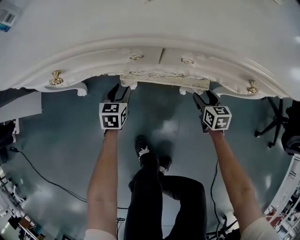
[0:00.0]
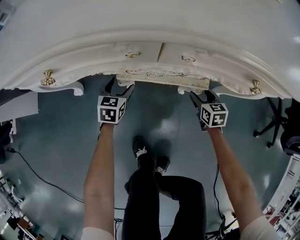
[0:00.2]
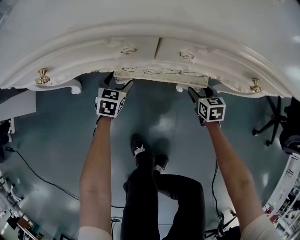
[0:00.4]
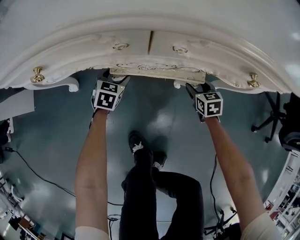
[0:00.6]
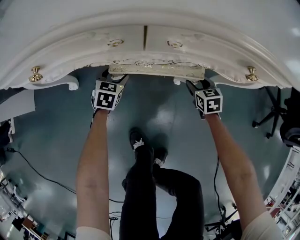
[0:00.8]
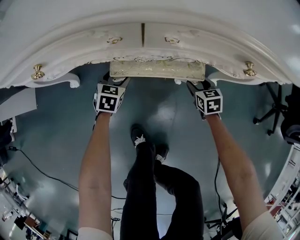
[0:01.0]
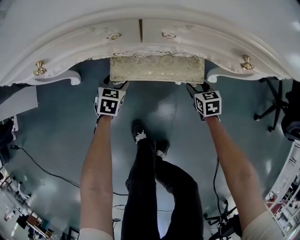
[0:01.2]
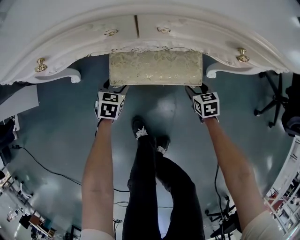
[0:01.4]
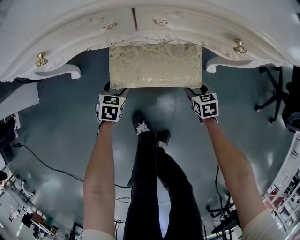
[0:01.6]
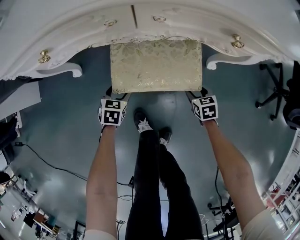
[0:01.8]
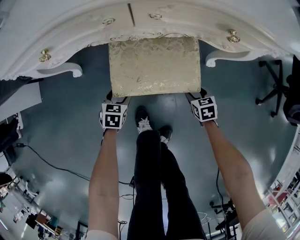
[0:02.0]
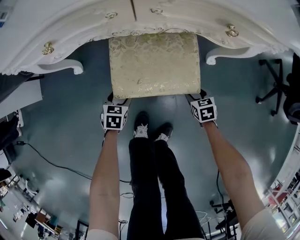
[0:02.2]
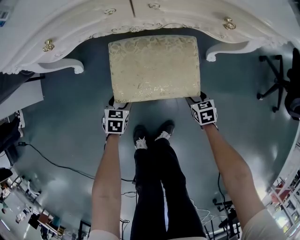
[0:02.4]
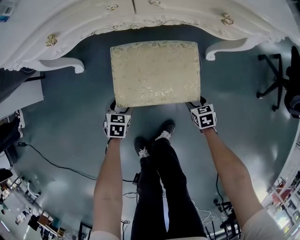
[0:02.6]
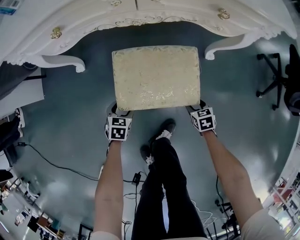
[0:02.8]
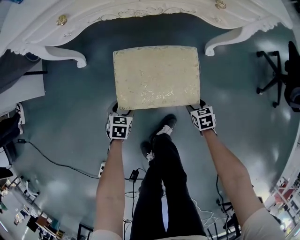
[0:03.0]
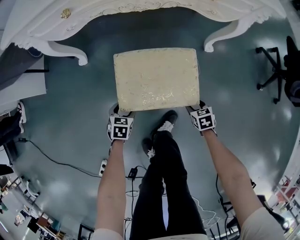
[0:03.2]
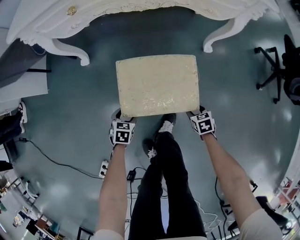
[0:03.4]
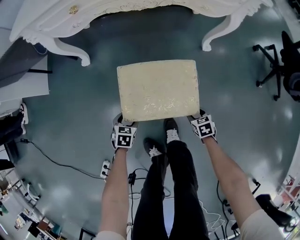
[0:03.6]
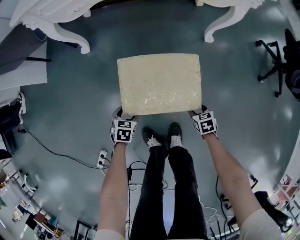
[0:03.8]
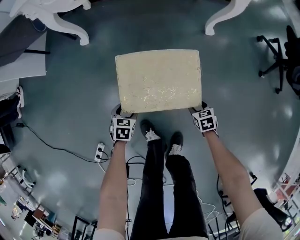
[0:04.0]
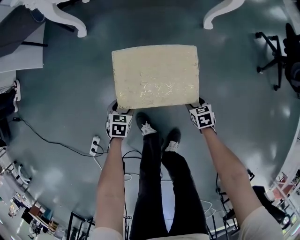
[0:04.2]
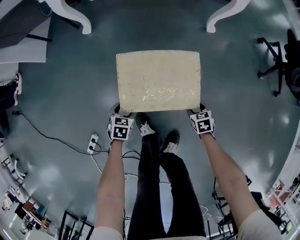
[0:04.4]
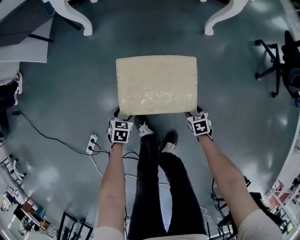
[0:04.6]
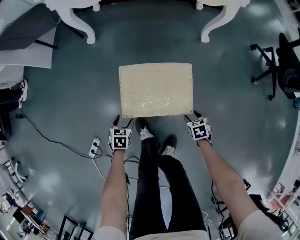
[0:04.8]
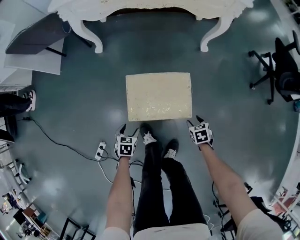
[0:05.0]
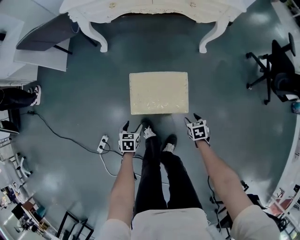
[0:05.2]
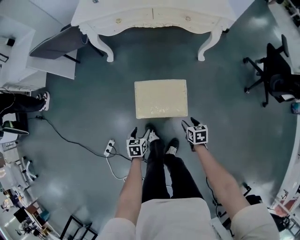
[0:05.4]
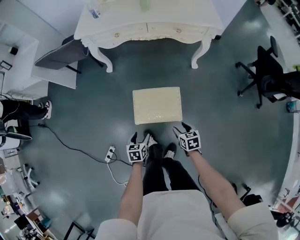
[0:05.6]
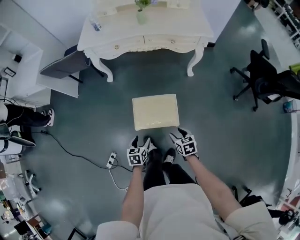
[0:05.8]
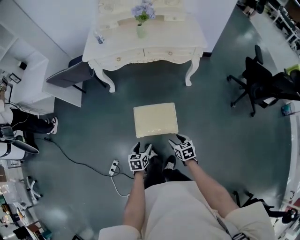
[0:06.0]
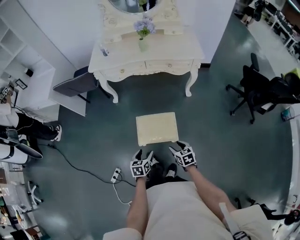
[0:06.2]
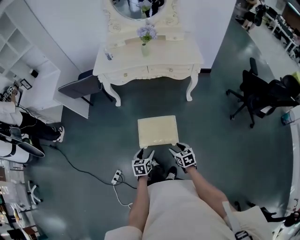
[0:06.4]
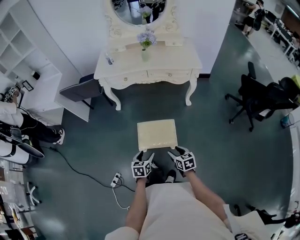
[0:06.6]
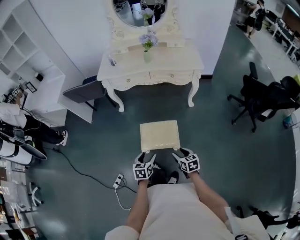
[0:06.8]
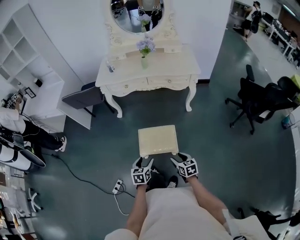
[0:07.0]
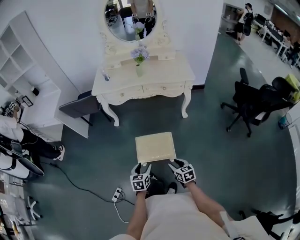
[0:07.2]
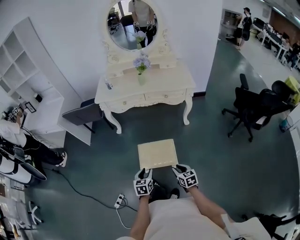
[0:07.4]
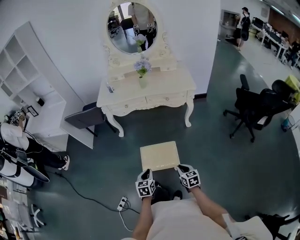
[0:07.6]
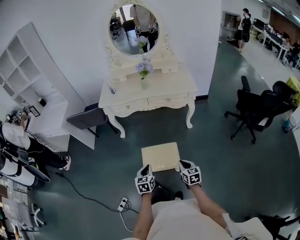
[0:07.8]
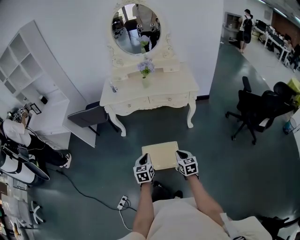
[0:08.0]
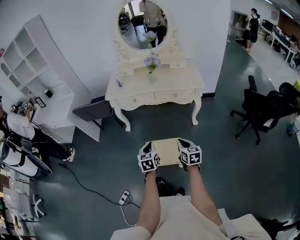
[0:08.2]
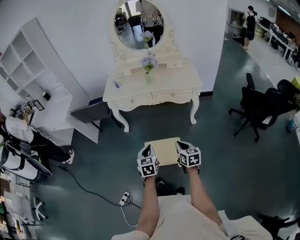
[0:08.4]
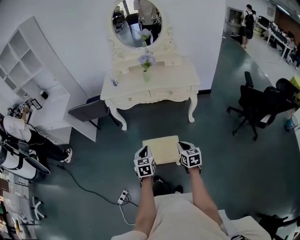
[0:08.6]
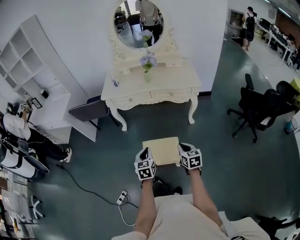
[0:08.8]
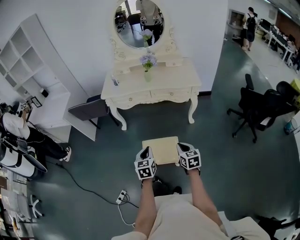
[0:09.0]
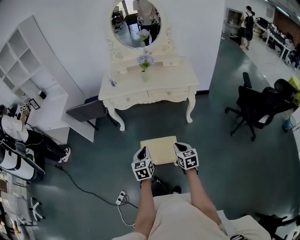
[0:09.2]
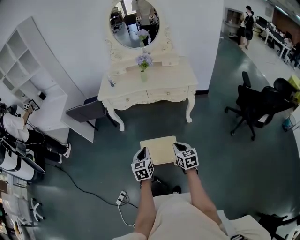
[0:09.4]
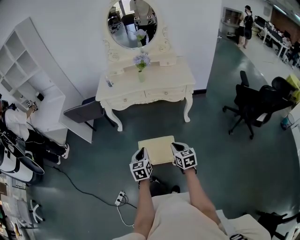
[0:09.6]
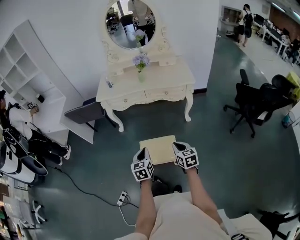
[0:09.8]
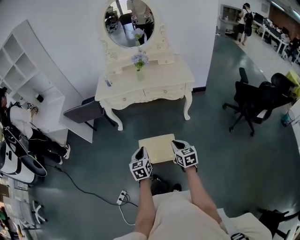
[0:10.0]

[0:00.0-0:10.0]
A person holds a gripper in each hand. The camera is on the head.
0.0 to 1.4 s: The two grippers go some 5 cm backward. The left gripper opens.
1.4 to 2.8 s: The two grippers go some 20 cm backward.
2.8 to 4.2 s: Both grippers travel together backward, about 25 cm.
4.2 to 5.8 s: Both grippers travel together upward, about 35 cm. The left gripper swivels some 20 degrees.
5.8 to 7.2 s: The left gripper heads upward, covering approximately 15 cm; the right gripper shifts roughly 15 cm upward and backward.
7.2 to 8.6 s: Both grippers travel together upward and forward, roughly 15 cm. The right gripper closes its fingers. Meanwhile the left gripper closes.
8.6 to 10.0 s: The grippers move only a little.

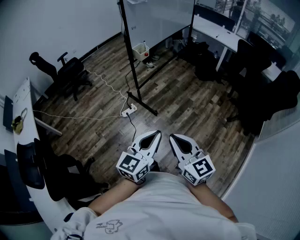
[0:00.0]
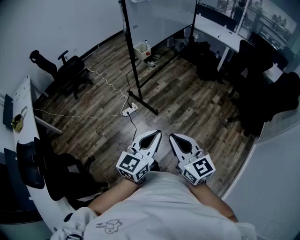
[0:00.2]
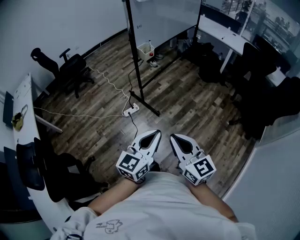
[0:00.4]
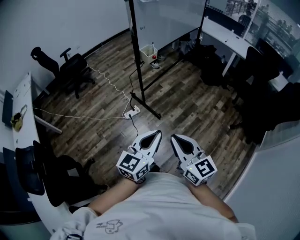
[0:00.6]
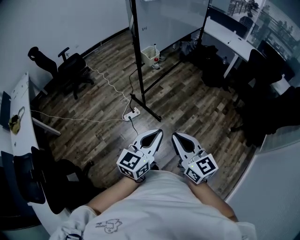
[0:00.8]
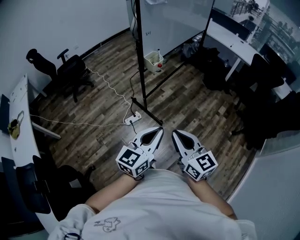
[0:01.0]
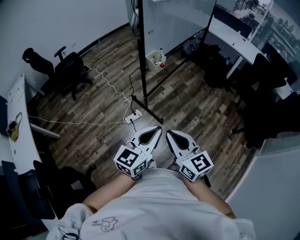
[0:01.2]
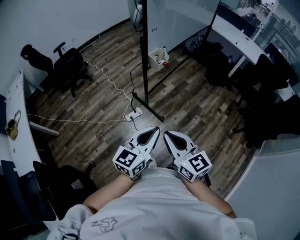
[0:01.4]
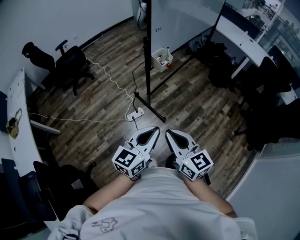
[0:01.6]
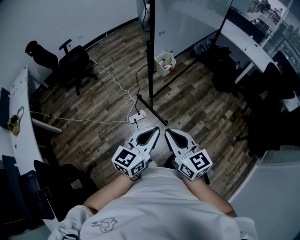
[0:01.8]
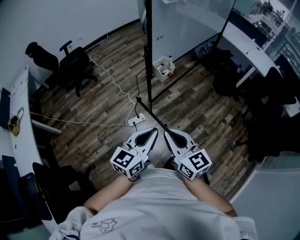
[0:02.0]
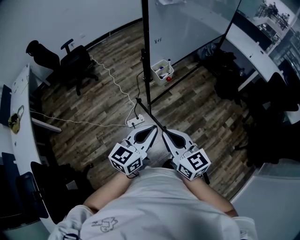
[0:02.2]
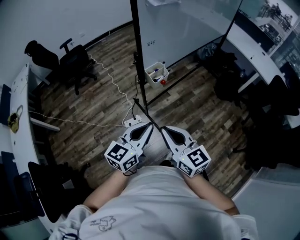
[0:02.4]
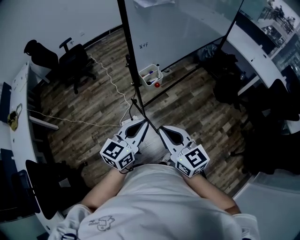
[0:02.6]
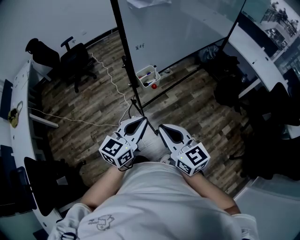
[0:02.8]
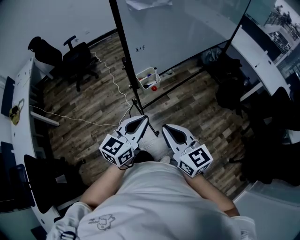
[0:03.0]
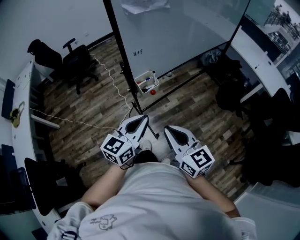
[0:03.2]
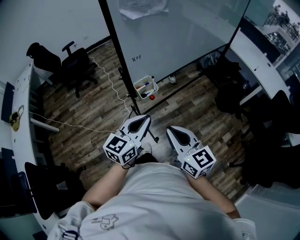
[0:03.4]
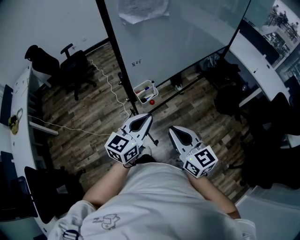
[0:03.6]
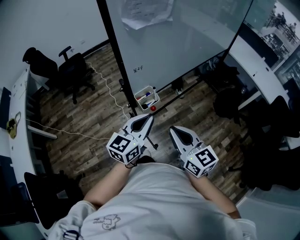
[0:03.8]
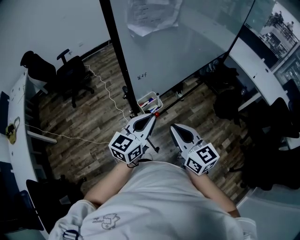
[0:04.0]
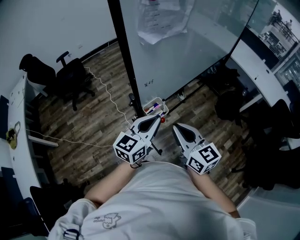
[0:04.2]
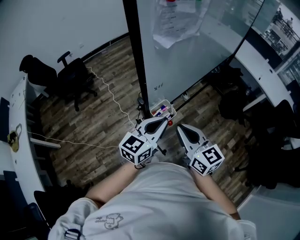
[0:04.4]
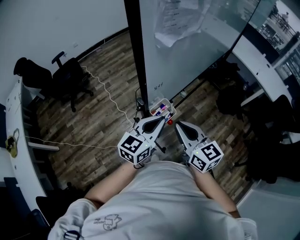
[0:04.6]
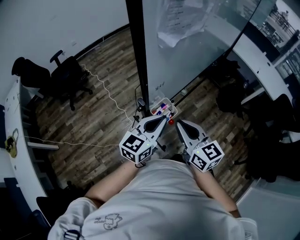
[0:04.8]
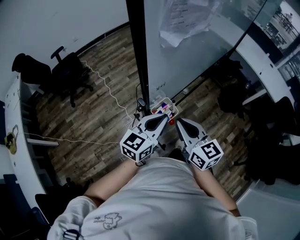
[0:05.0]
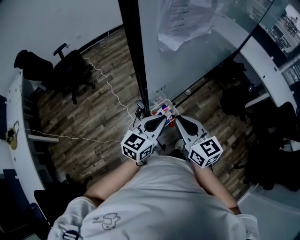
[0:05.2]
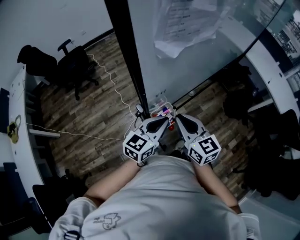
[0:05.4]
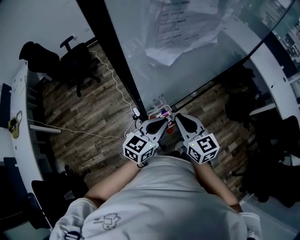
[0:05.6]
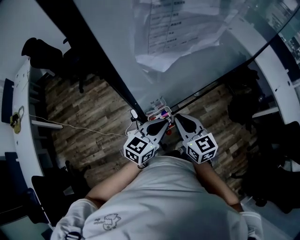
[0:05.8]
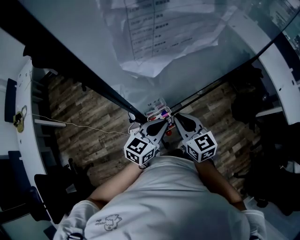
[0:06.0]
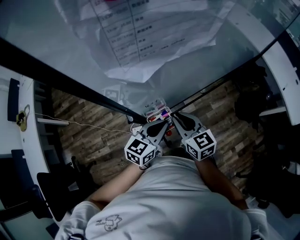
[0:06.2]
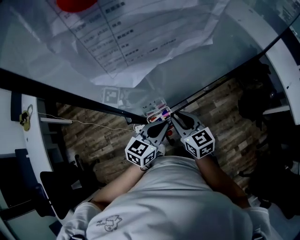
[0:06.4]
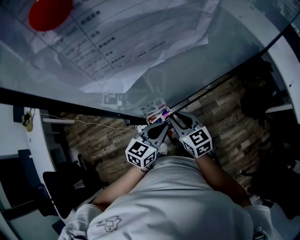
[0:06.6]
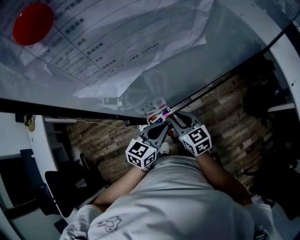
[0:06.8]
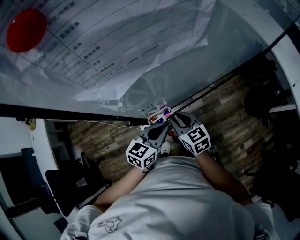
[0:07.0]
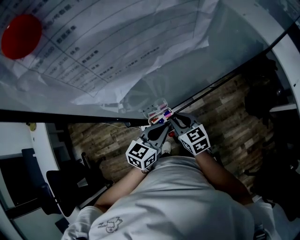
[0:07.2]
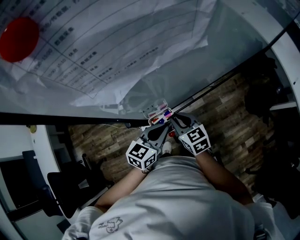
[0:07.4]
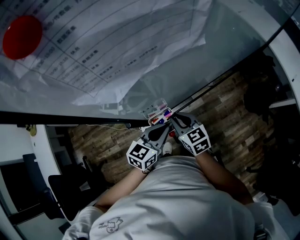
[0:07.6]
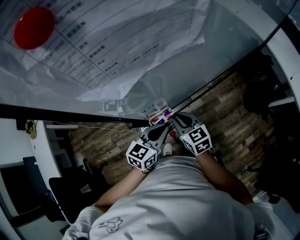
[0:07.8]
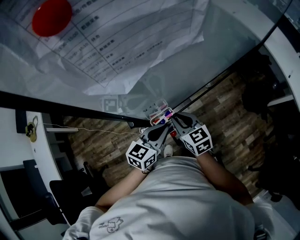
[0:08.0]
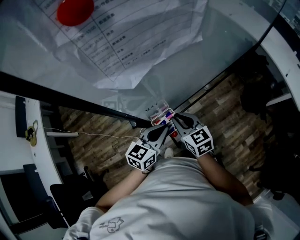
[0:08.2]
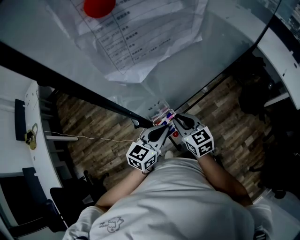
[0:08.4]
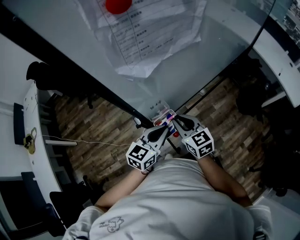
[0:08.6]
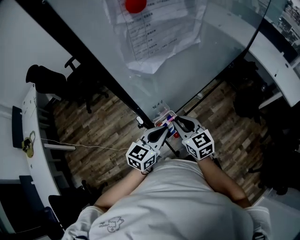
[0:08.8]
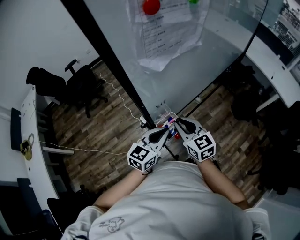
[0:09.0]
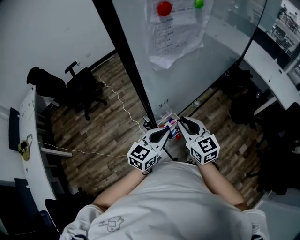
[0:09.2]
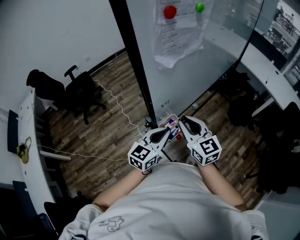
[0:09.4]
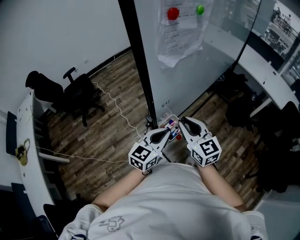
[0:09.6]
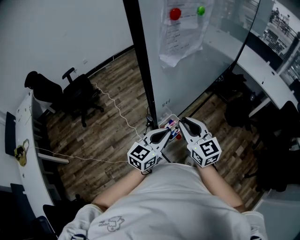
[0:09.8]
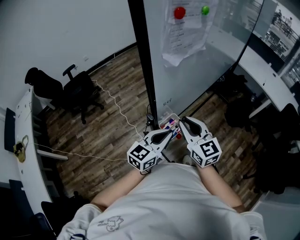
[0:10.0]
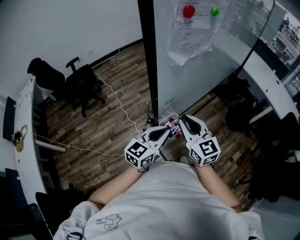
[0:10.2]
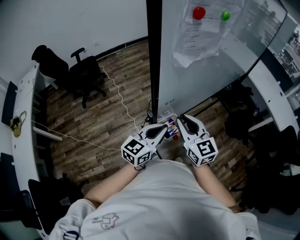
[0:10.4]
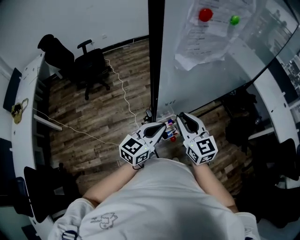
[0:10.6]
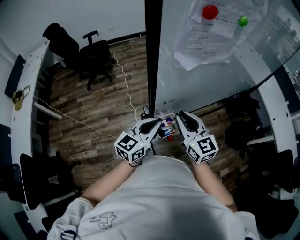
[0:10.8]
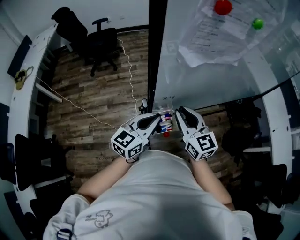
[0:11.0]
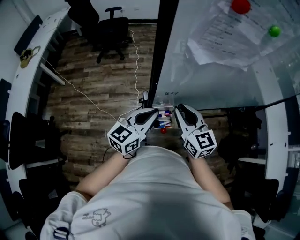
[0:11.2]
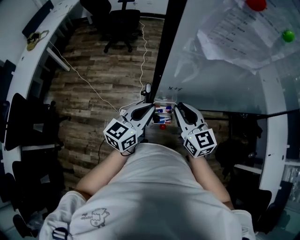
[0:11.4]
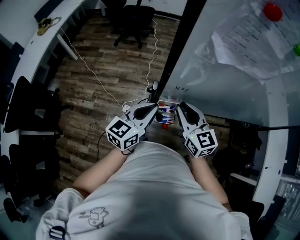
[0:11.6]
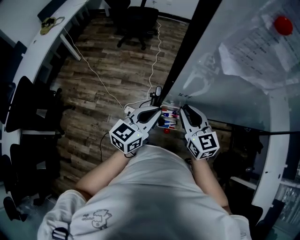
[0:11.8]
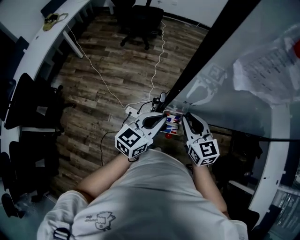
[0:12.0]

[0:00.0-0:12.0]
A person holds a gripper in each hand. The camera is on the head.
0.0 to 1.6 s: The two grippers go roughly 30 cm forward and to the left.
1.6 to 3.0 s: Both grippers travel together forward and to the right, some 25 cm.
3.0 to 4.4 s: Both grippers move forward, approximately 20 cm.
4.4 to 6.0 s: The left gripper is displaced downward and forward by some 15 cm; the right gripper heads forward and downward, covering approximately 15 cm.
6.0 to 7.6 s: The right gripper moves downward, approximately 10 cm.
7.6 to 9.0 s: The grippers both shift upward by approximately 10 cm.
9.0 to 10.4 s: The right gripper is displaced upward by about 10 cm.
10.4 to 12.0 s: The right gripper travels downward by about 10 cm, and changes its angle by roughly 40 degrees, while the left gripper changes place by about 5 cm, and turns by about 40 degrees.

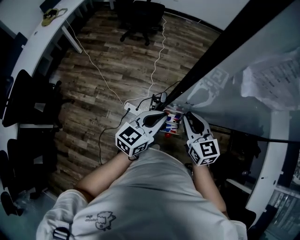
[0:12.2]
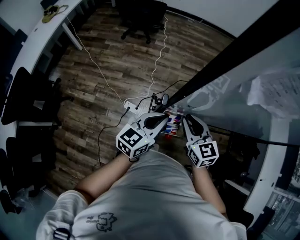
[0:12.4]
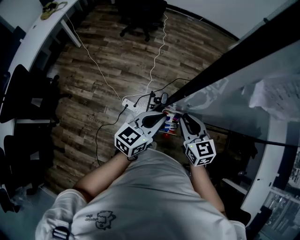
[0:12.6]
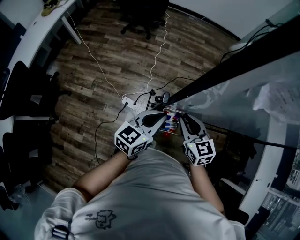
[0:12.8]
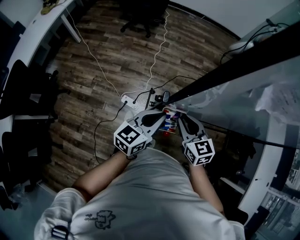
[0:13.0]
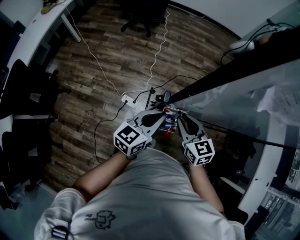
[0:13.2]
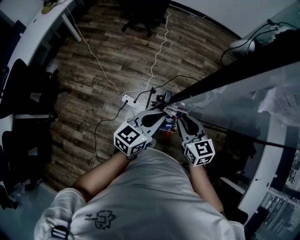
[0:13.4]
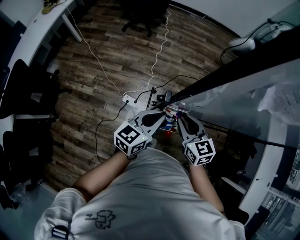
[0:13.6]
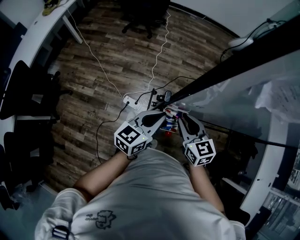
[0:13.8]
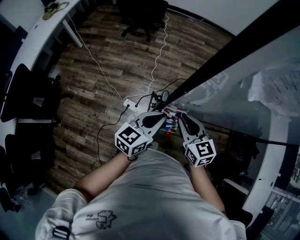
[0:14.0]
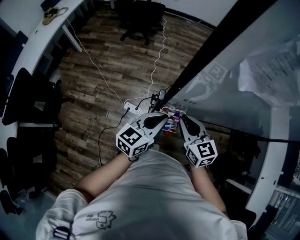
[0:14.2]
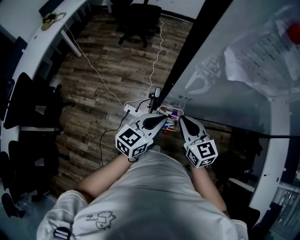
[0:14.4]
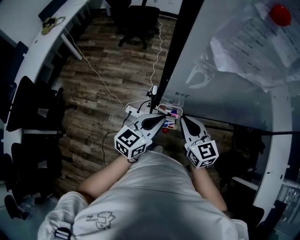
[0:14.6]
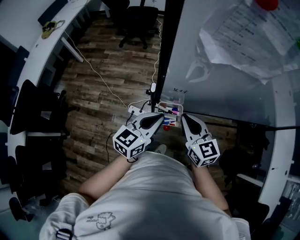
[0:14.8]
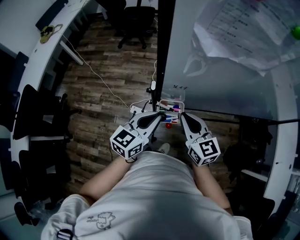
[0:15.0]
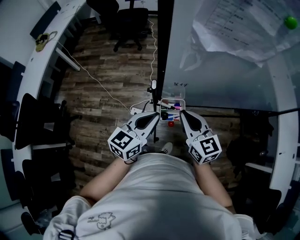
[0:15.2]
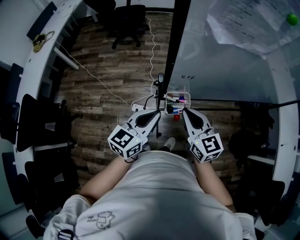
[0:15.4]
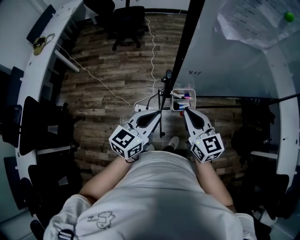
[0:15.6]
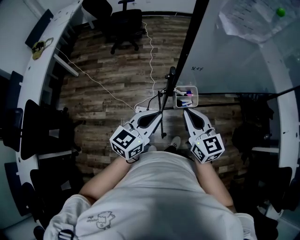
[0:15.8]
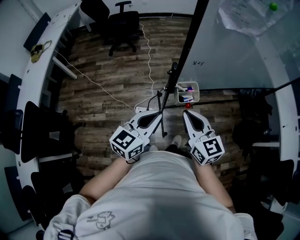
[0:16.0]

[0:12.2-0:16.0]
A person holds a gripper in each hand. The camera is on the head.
12.2 to 13.4 s: The grippers move only a little.
13.4 to 14.8 s: The left gripper moves about 5 cm. The right gripper moves upward, approximately 5 cm.
14.8 to 16.0 s: Both grippers move backward and to the left, approximately 15 cm.
